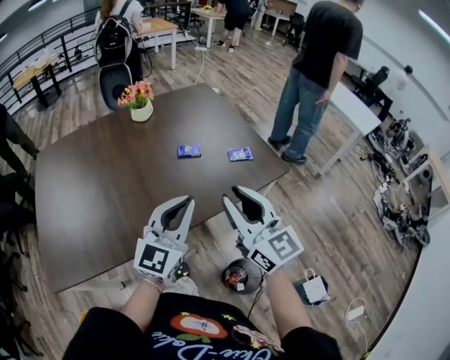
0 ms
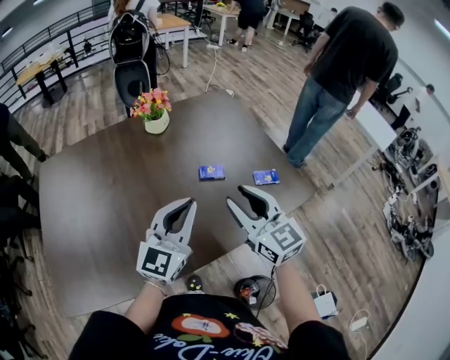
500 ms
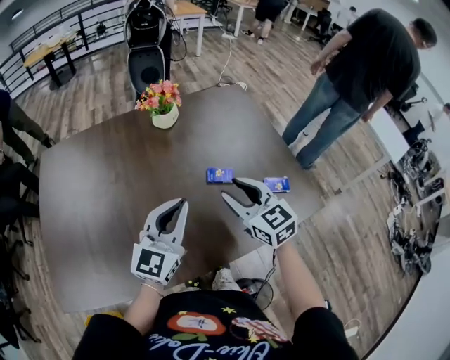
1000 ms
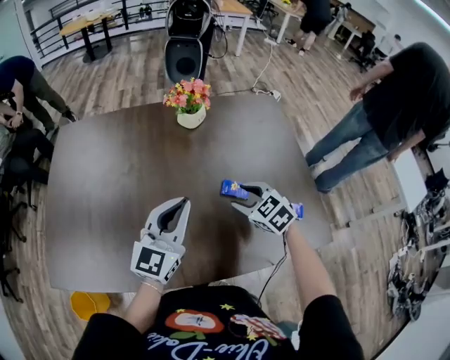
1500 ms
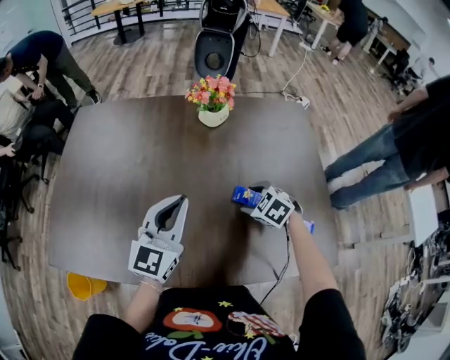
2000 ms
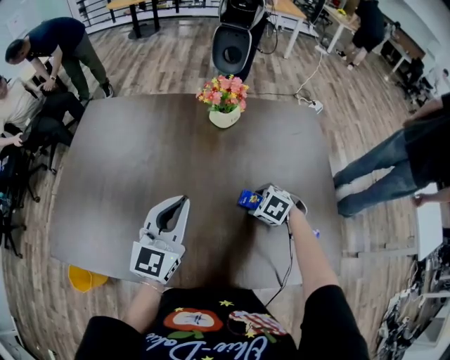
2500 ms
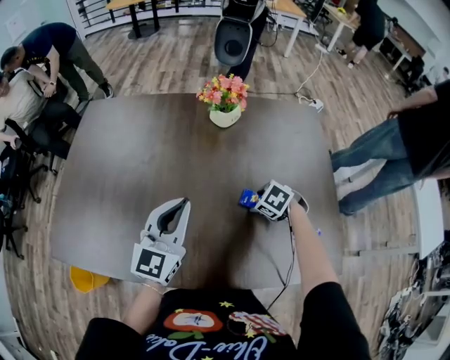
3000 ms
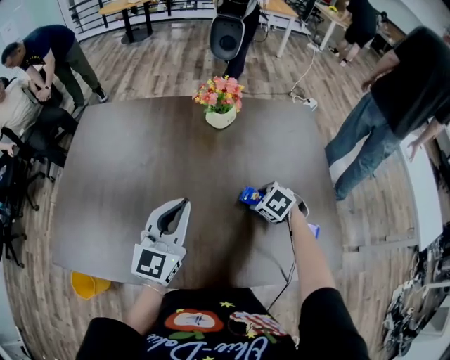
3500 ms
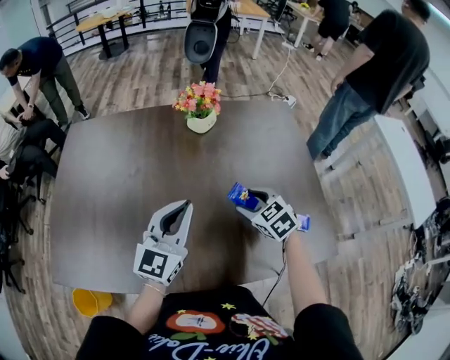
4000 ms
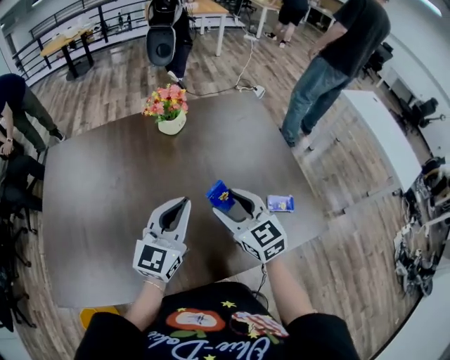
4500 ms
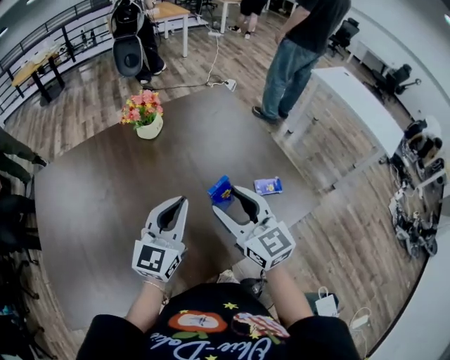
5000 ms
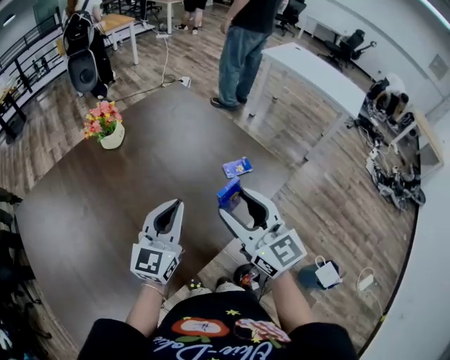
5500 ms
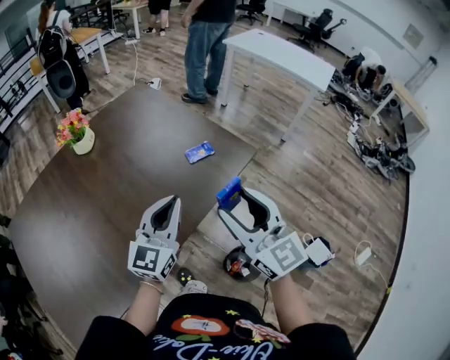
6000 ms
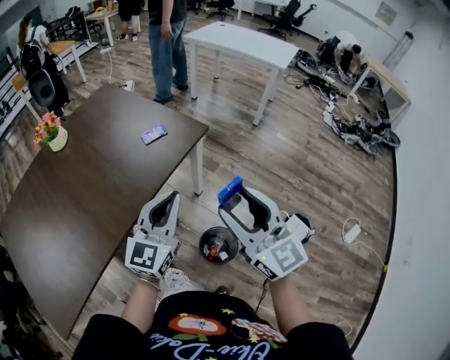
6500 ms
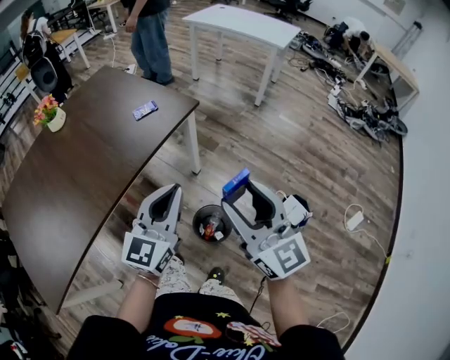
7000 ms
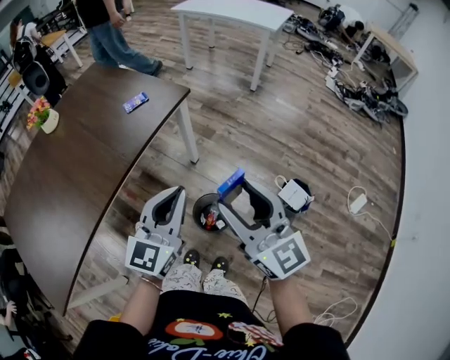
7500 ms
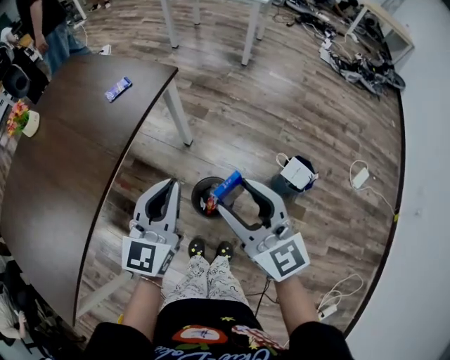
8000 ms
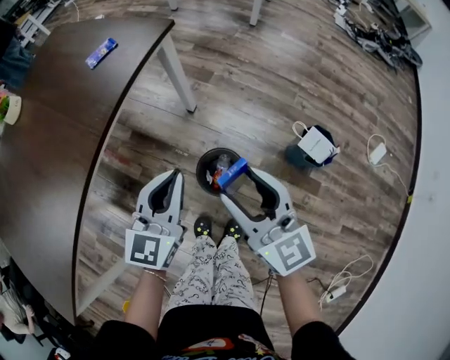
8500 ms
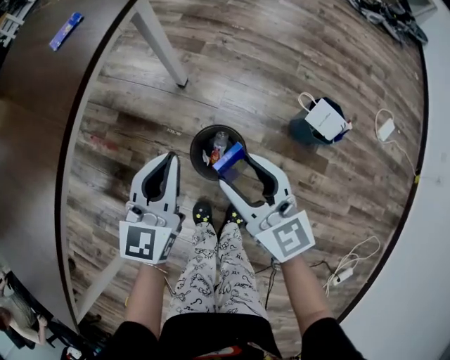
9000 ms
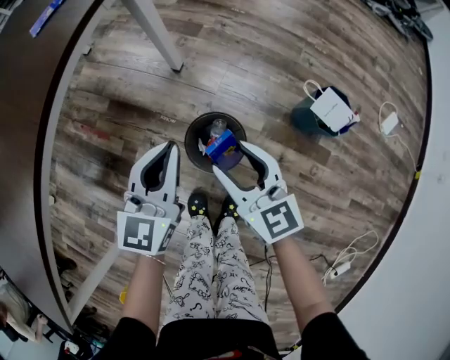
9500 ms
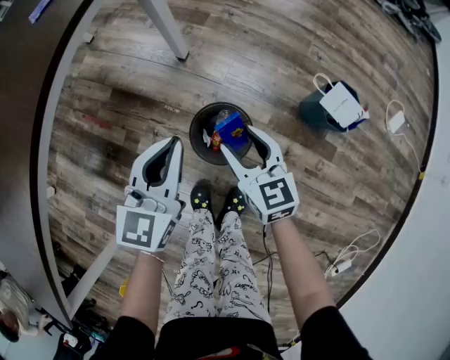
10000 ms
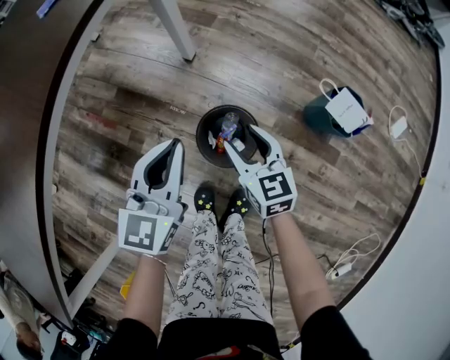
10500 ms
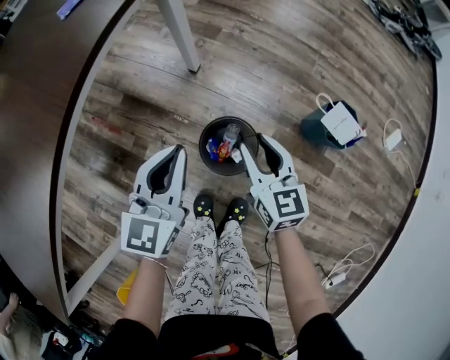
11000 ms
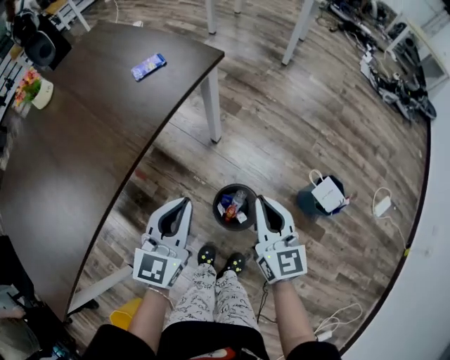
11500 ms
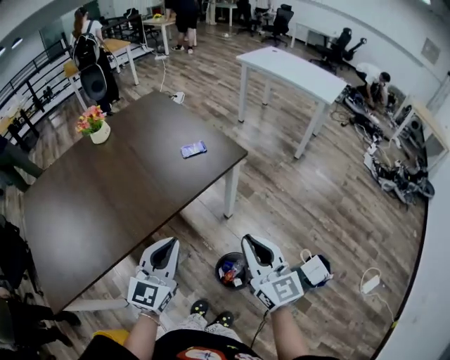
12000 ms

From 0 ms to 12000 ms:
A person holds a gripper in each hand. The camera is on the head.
From 0 ms to 2000 ms: The right gripper moves approximately 40 cm, tips its fingers downward by approximately 70 degrees, and opens up. The left gripper moves about 25 cm, and rotates approximately 30 degrees.
From 2000 ms to 4000 ms: The right gripper is displaced upward by about 5 cm, and changes its angle by approximately 20 degrees.
From 4000 ms to 6000 ms: The left gripper ends up approximately 25 cm from where it was, and rotates about 40 degrees. The right gripper ends up about 40 cm from where it was, and tips its fingers upward by some 50 degrees.
From 6000 ms to 8000 ms: The left gripper is displaced to the right and backward by approximately 30 cm. The right gripper shifts approximately 30 cm to the right, backward and downward.
From 8000 ms to 10000 ms: Both grippers move downward, some 35 cm. The right gripper rotates approximately 30 degrees.
From 10000 ms to 12000 ms: The left gripper goes about 30 cm upward and to the left, and swivels some 30 degrees. The right gripper shifts about 40 cm upward, turns by approximately 30 degrees, and closes up.

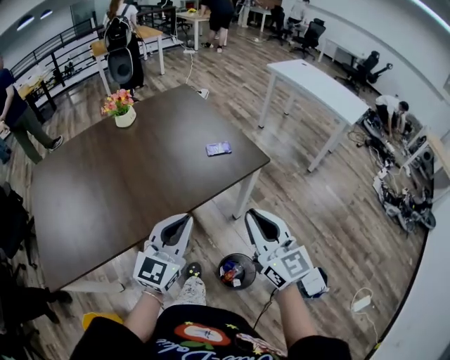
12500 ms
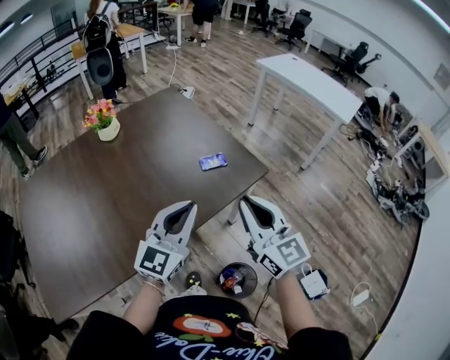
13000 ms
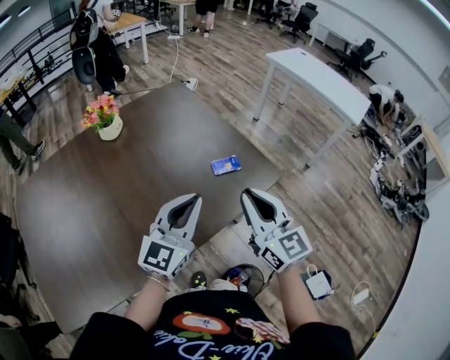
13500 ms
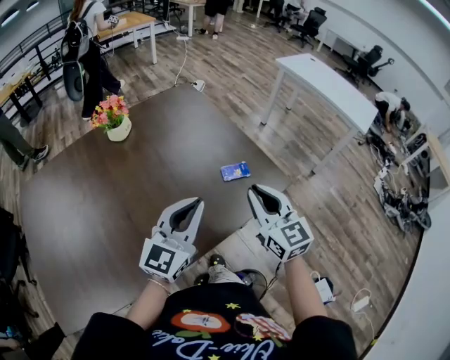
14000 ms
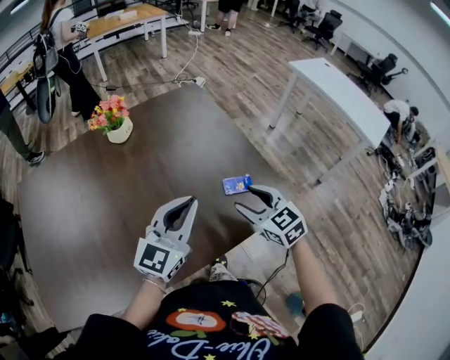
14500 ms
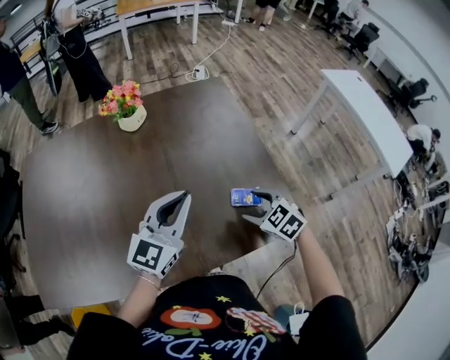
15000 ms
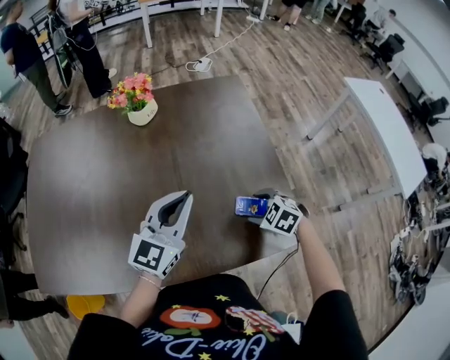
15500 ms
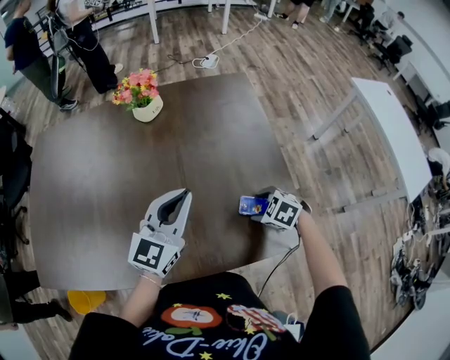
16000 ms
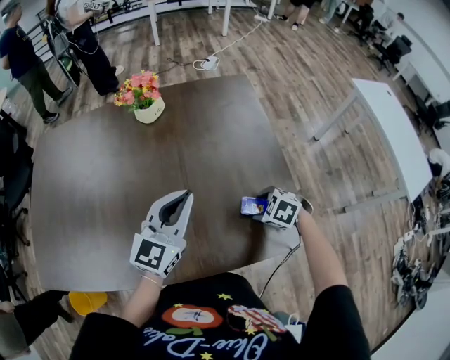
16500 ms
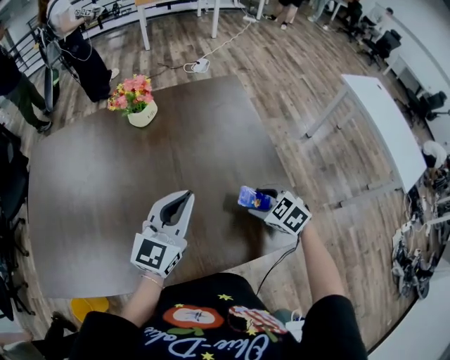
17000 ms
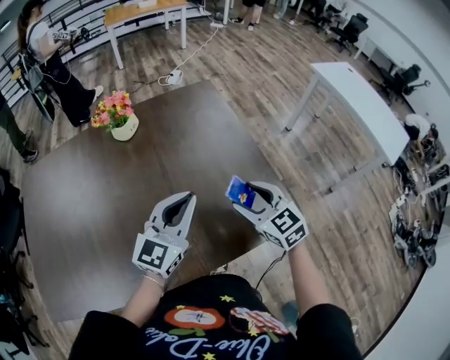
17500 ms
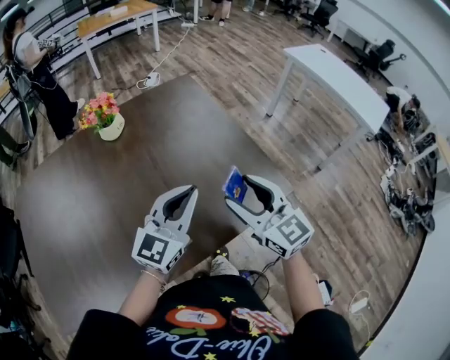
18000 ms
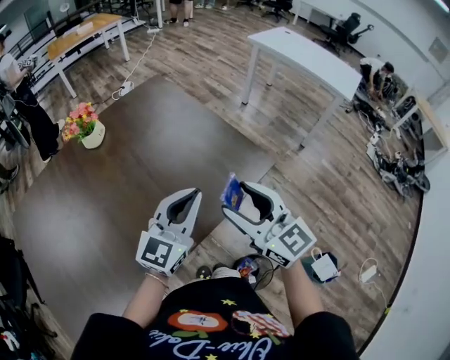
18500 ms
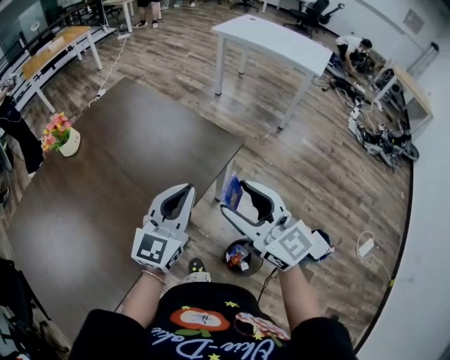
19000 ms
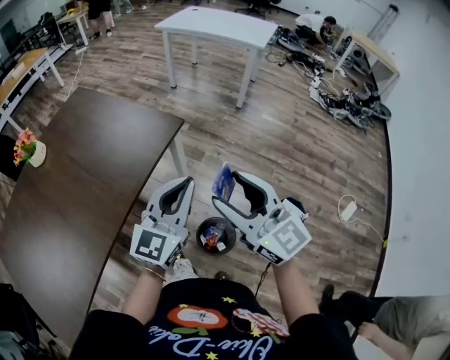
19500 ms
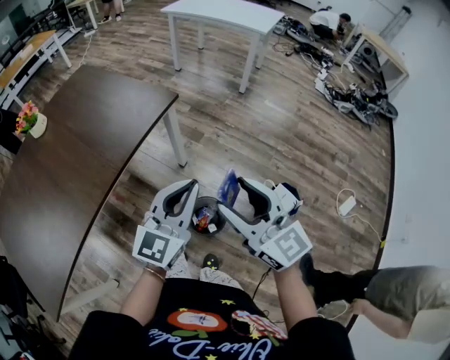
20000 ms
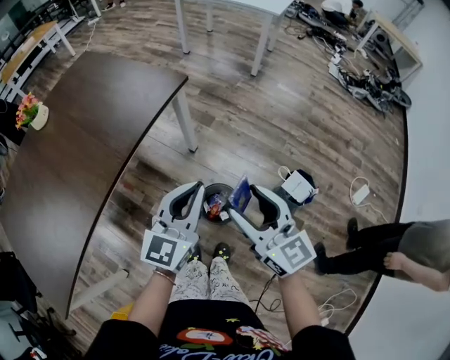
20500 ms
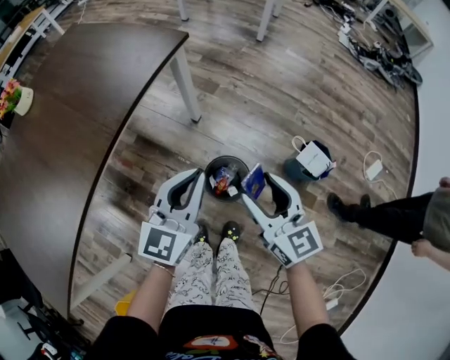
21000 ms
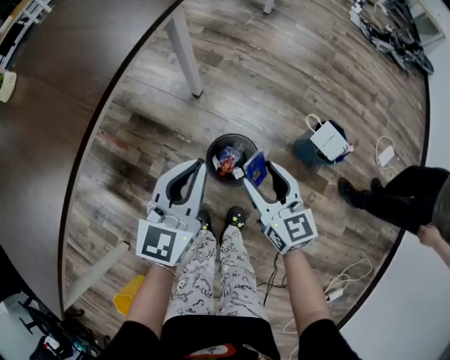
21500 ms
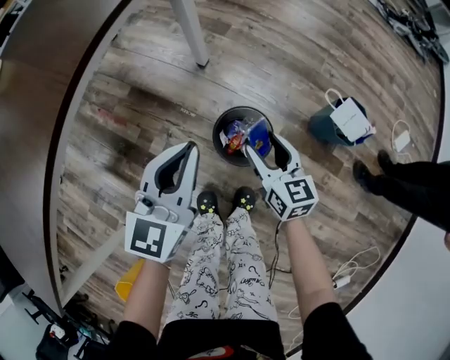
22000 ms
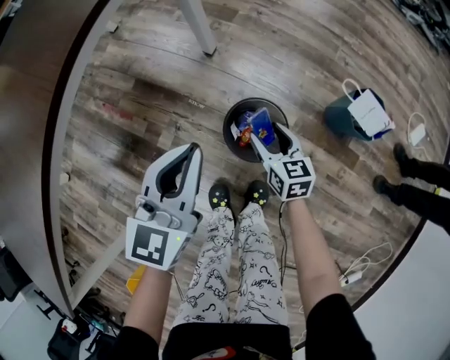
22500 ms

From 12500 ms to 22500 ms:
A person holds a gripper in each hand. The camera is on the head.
From 12500 ms to 14500 ms: The left gripper goes approximately 25 cm forward; the right gripper moves forward and downward, about 35 cm, angles its fingers downward, by some 30 degrees, and opens.
From 14500 ms to 16500 ms: The right gripper shifts about 15 cm downward, and tilts its fingers about 40 degrees downward. The left gripper changes place by some 10 cm, and swivels some 20 degrees.
From 16500 ms to 18500 ms: The left gripper changes place by about 15 cm, and swivels some 30 degrees, while the right gripper is displaced upward by some 25 cm, and tips its fingers upward by about 70 degrees.
From 18500 ms to 20500 ms: The right gripper heads backward and to the right, covering roughly 40 cm, and turns by some 30 degrees; the left gripper moves to the right and backward, approximately 35 cm.
From 20500 ms to 22500 ms: The right gripper travels downward by approximately 50 cm, and tips its fingers downward by roughly 30 degrees; the left gripper is displaced downward by some 25 cm.

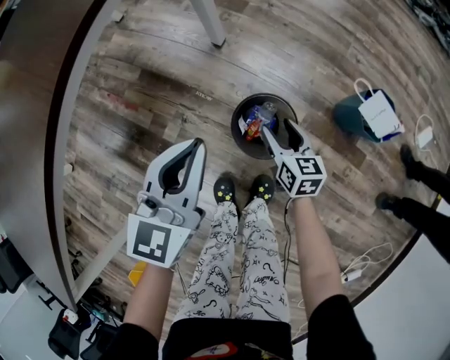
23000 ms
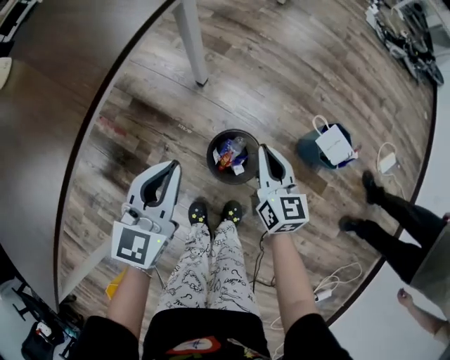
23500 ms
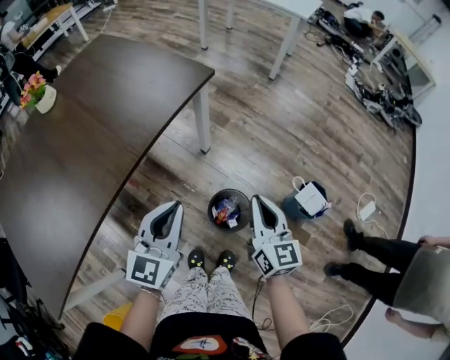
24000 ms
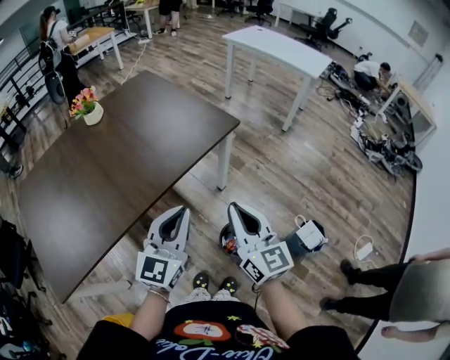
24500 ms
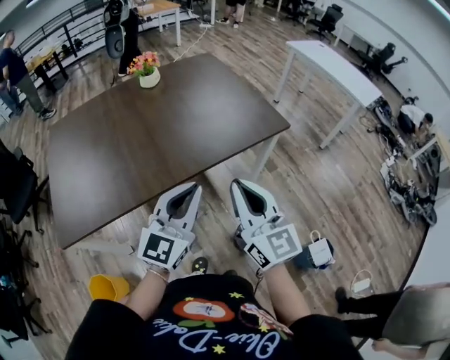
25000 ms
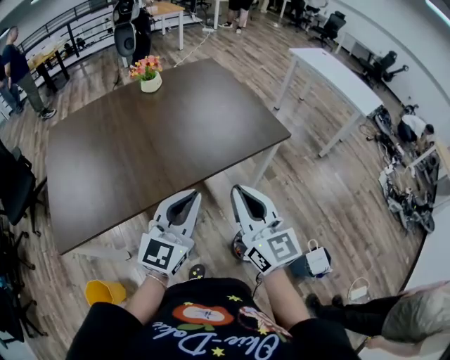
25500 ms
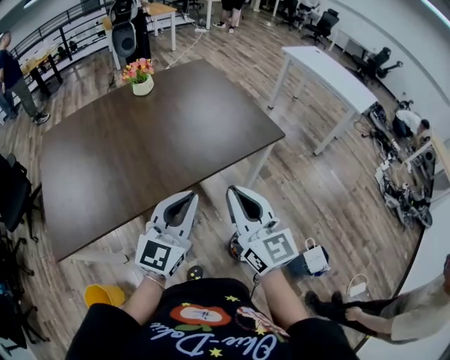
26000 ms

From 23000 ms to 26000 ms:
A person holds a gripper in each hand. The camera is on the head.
From 23000 ms to 24500 ms: The right gripper shifts approximately 50 cm upward, tips its fingers upward by about 40 degrees, and closes. Meanwhile the left gripper heads upward, covering some 30 cm, and changes its angle by some 30 degrees.
From 24500 ms to 26000 ms: The left gripper moves to the left, approximately 10 cm; the right gripper travels to the left and upward by approximately 15 cm.

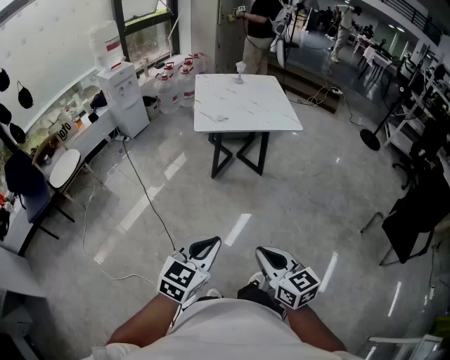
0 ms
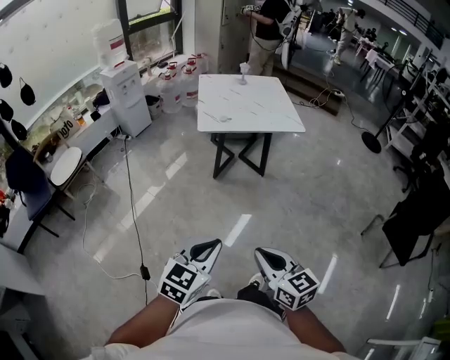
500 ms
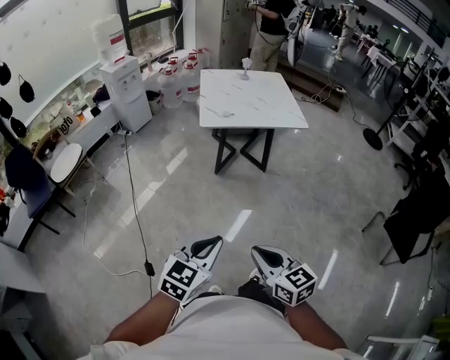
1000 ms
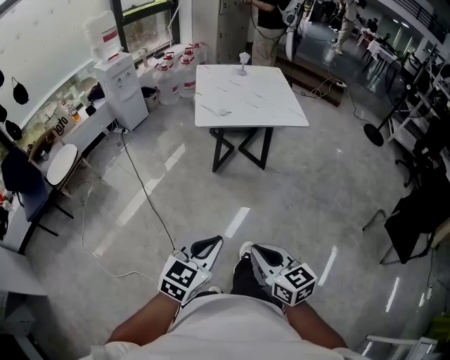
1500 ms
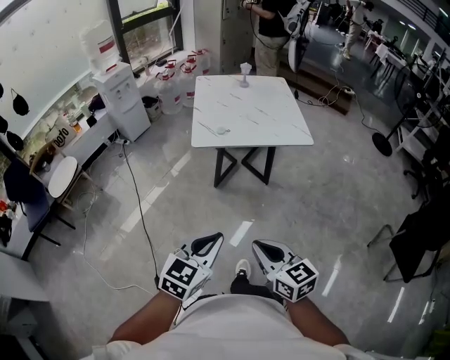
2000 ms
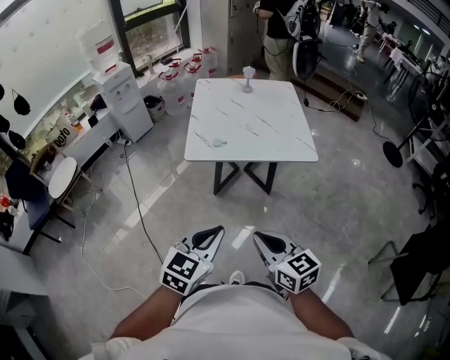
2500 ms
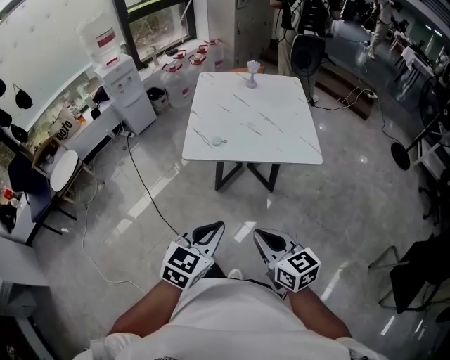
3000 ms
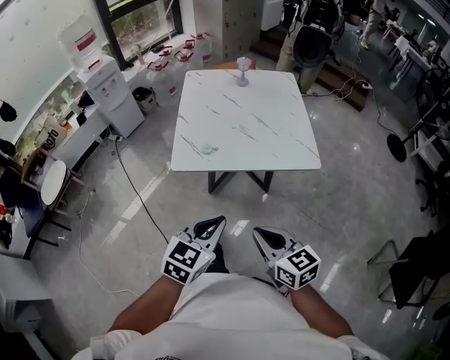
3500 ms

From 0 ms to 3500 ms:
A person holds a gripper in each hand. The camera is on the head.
From 0 ms to 2000 ms: Both grippers move forward, some 20 cm.
From 2000 ms to 3500 ms: The two grippers go some 25 cm forward.
